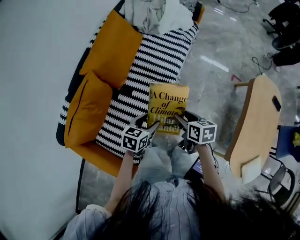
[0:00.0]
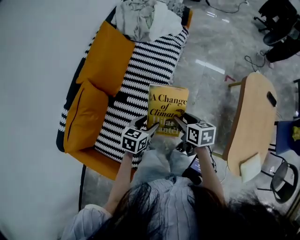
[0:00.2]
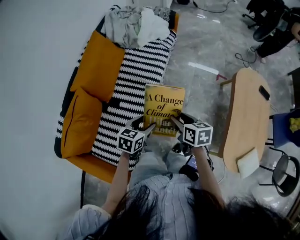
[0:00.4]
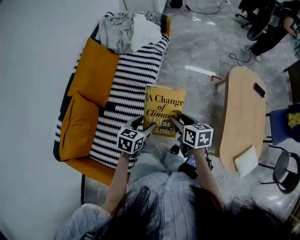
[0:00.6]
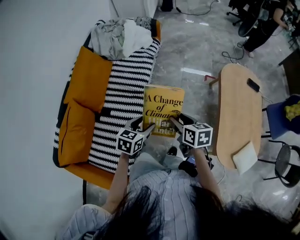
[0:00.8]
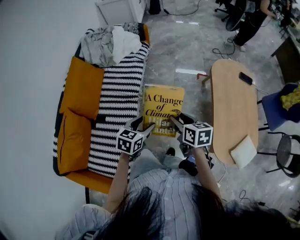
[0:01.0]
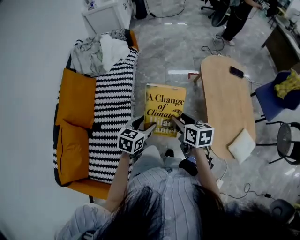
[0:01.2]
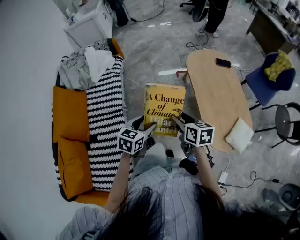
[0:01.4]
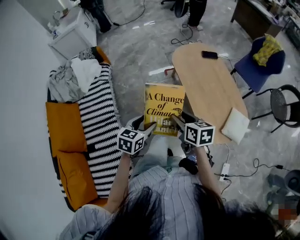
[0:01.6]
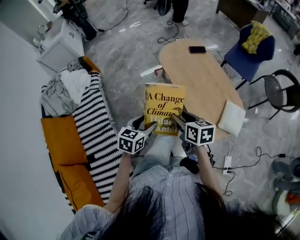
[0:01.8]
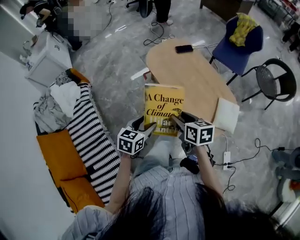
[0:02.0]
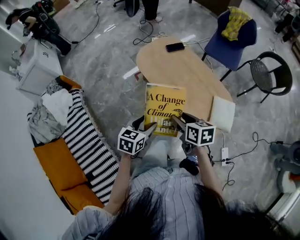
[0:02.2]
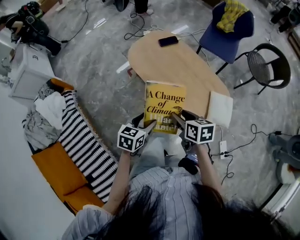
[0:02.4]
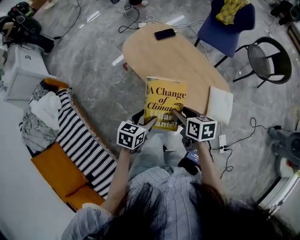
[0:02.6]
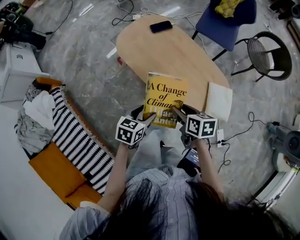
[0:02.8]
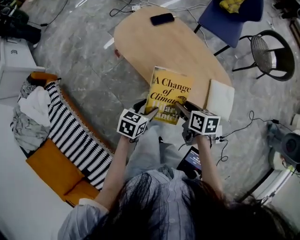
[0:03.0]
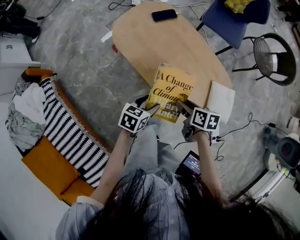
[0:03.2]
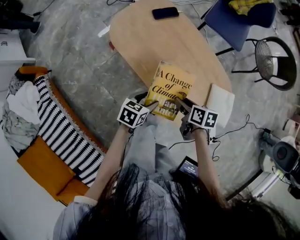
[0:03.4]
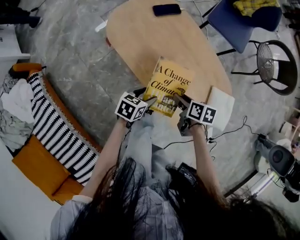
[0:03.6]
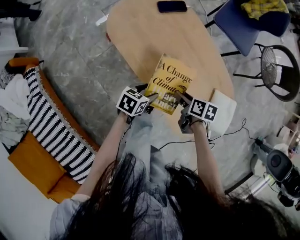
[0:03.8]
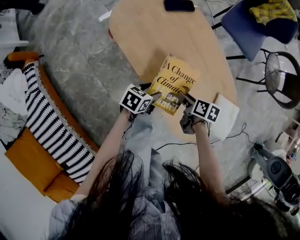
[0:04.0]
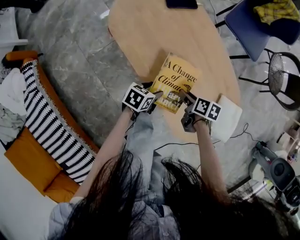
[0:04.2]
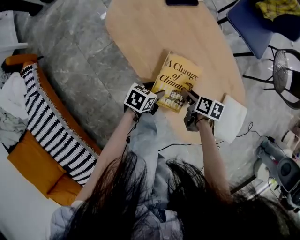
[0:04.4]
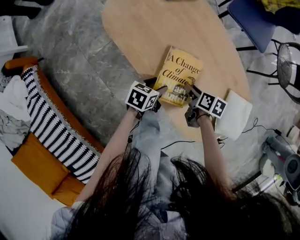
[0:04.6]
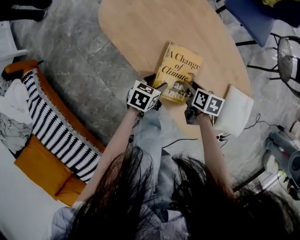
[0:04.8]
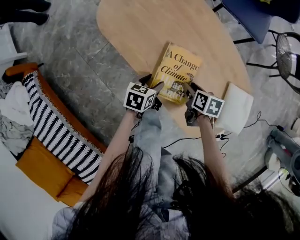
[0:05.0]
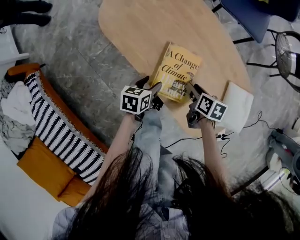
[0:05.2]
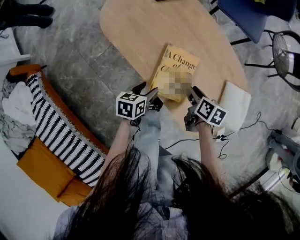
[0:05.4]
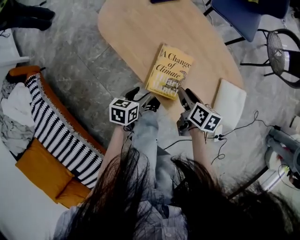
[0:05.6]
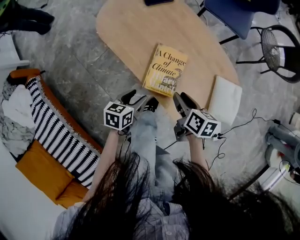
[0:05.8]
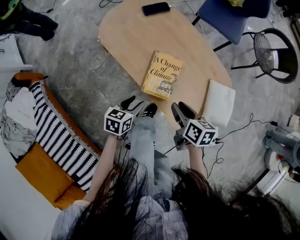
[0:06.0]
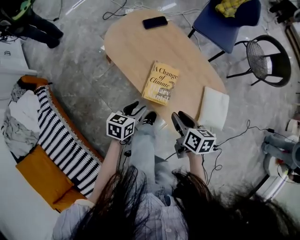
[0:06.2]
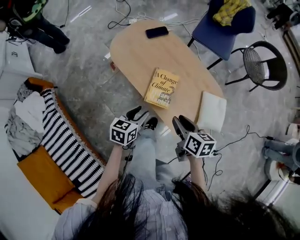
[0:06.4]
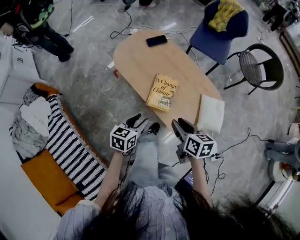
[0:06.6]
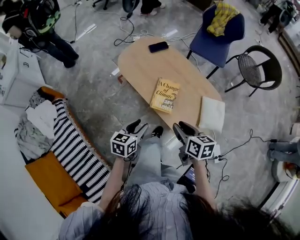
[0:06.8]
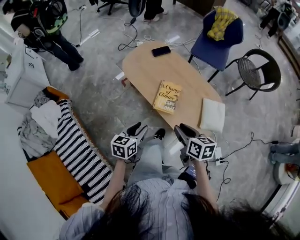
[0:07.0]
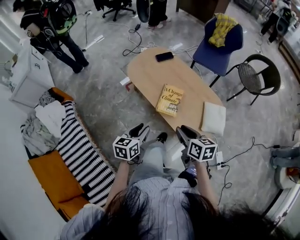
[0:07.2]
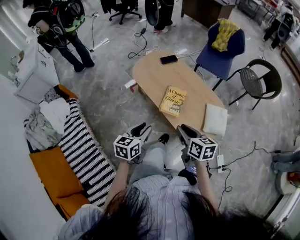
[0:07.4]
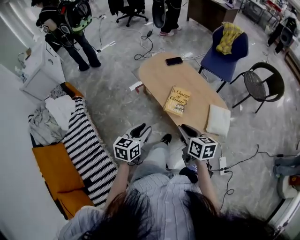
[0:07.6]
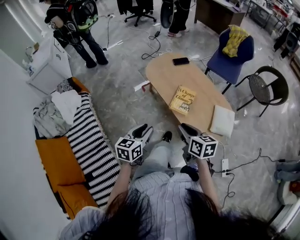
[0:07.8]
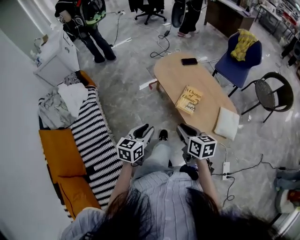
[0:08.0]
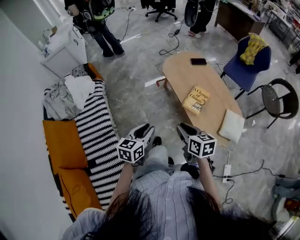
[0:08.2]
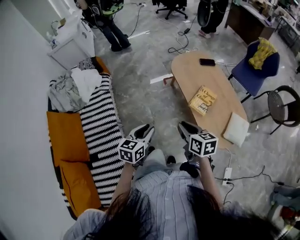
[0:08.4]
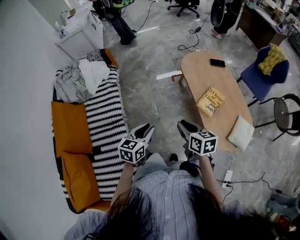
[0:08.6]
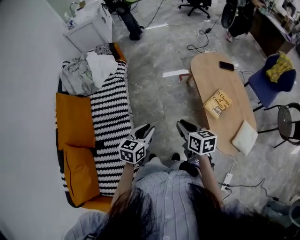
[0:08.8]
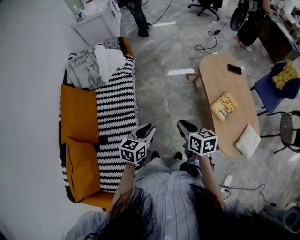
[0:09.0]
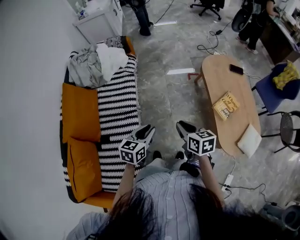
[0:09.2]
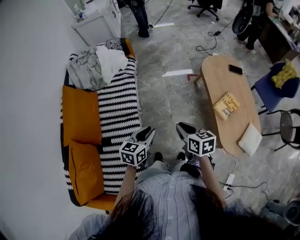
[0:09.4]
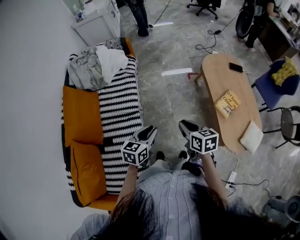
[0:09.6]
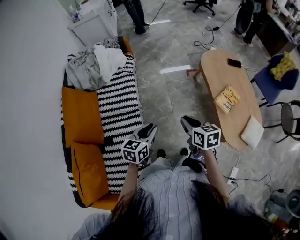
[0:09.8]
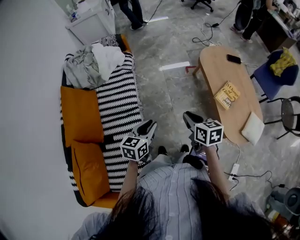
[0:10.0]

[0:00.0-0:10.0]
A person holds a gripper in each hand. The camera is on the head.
0.0 to 1.4 s: The left gripper shifts by roughly 35 cm, and swivels some 30 degrees; the right gripper moves roughly 35 cm, and swivels roughly 40 degrees.
1.4 to 2.8 s: The left gripper changes place by about 35 cm, and rotates some 40 degrees. Meanwhile the right gripper ends up roughly 30 cm from where it was, and turns by some 40 degrees.
2.8 to 4.2 s: Both grippers travel together downward and forward, approximately 30 cm. The right gripper changes its angle by roughly 20 degrees.
4.2 to 5.8 s: The right gripper travels upward and backward by some 10 cm. The left gripper travels backward and upward by some 10 cm.
5.8 to 7.2 s: Both grippers travel together upward and backward, about 30 cm. The right gripper swivels roughly 20 degrees; the left gripper changes its angle by some 20 degrees, and closes up.
7.2 to 8.6 s: The left gripper ends up roughly 25 cm from where it was, and swivels about 20 degrees, while the right gripper moves some 20 cm, and changes its angle by some 30 degrees.
8.6 to 10.0 s: Both grippers travel together to the left, roughly 15 cm.

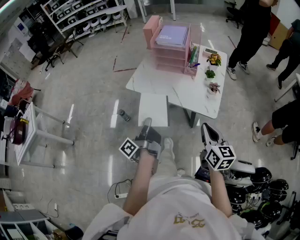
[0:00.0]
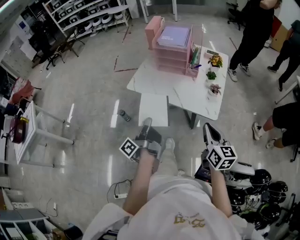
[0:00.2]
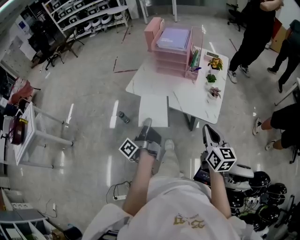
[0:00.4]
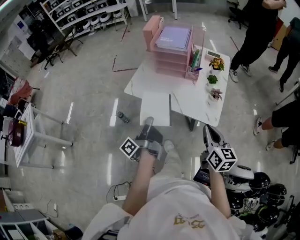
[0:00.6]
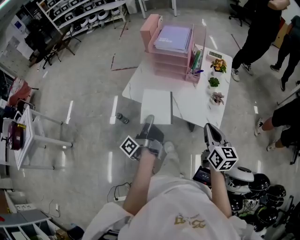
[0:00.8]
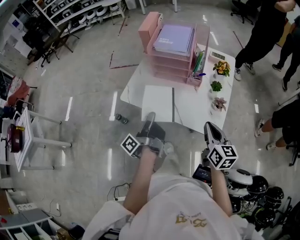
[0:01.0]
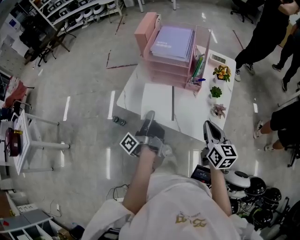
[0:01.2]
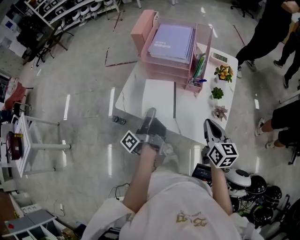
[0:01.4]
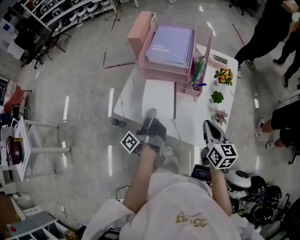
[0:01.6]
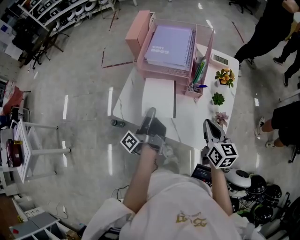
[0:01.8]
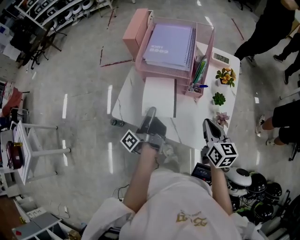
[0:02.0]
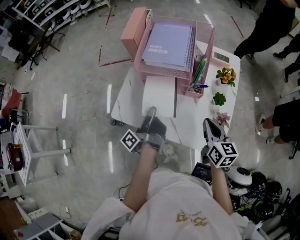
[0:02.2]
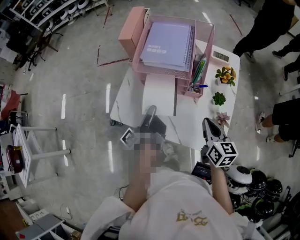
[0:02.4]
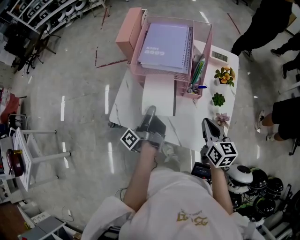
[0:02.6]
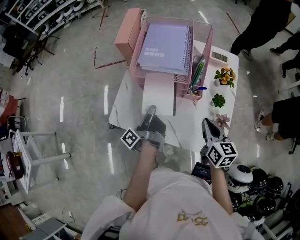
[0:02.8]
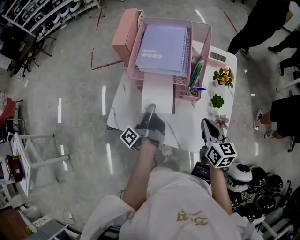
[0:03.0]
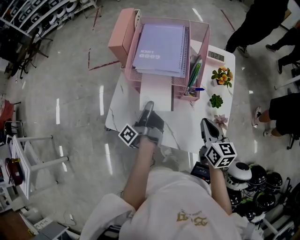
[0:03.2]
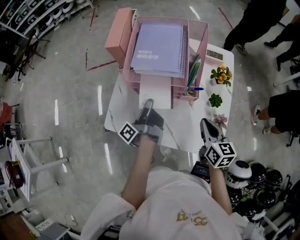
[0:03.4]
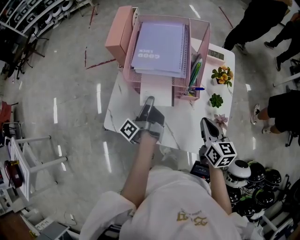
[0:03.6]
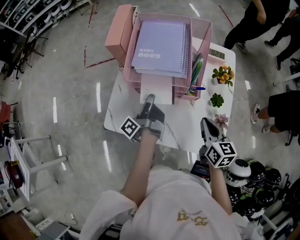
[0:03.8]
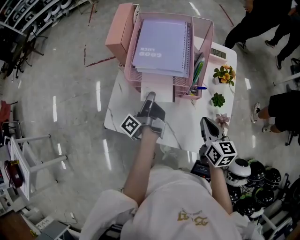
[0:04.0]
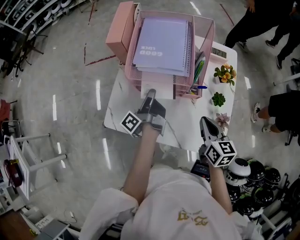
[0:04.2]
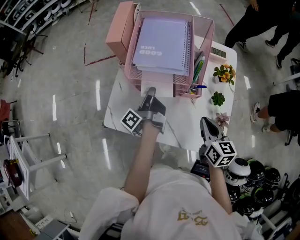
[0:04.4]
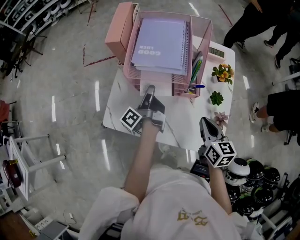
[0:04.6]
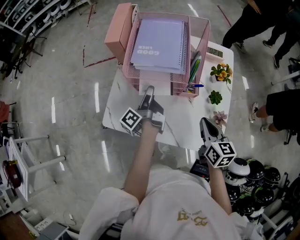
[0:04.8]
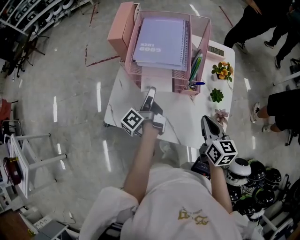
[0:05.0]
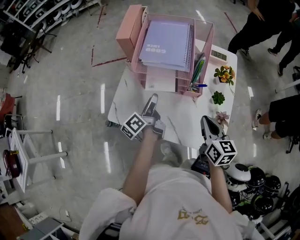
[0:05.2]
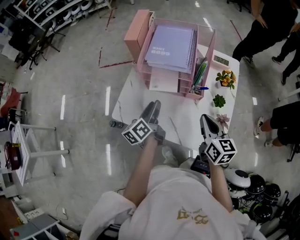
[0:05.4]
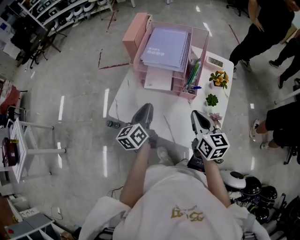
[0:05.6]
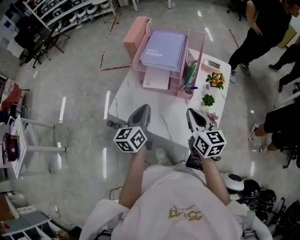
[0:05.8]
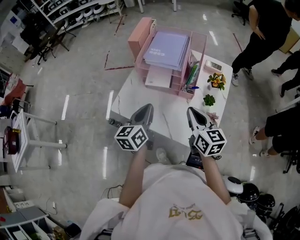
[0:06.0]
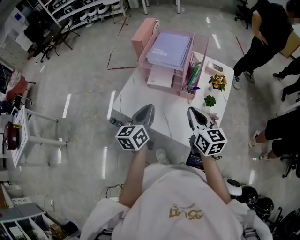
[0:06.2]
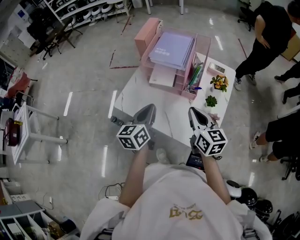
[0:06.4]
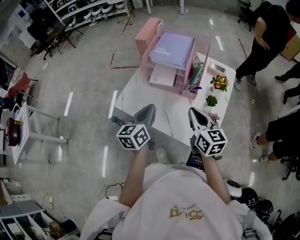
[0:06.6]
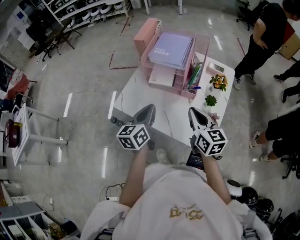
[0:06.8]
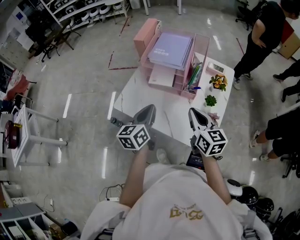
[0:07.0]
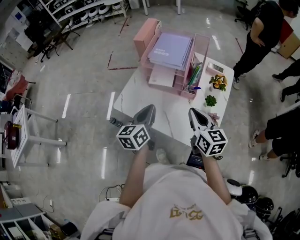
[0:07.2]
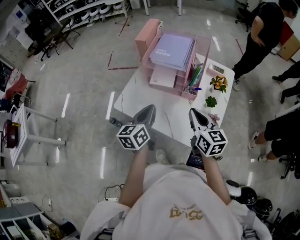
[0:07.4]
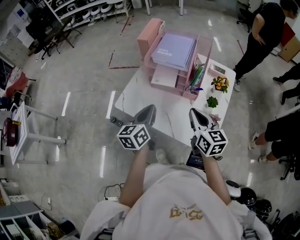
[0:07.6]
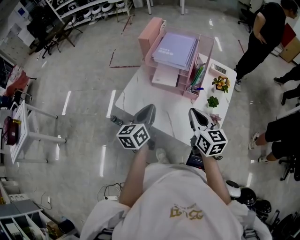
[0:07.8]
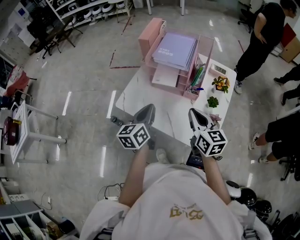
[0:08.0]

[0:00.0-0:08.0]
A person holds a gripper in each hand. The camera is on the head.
0.0 to 1.6 s: The right gripper ends up about 30 cm from where it was.
1.6 to 3.2 s: The right gripper changes place by some 10 cm.
4.8 to 6.4 s: The right gripper heads upward, covering approximately 10 cm, and rotates about 20 degrees.

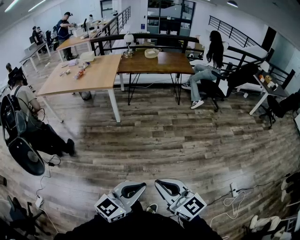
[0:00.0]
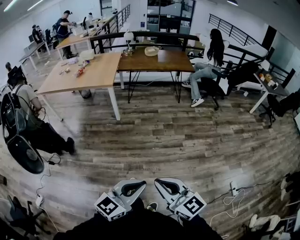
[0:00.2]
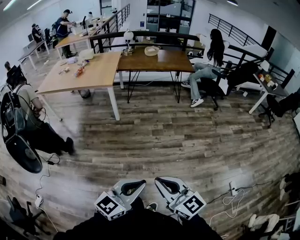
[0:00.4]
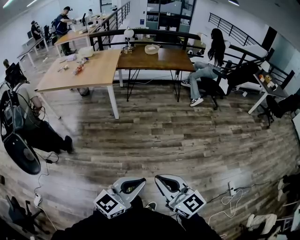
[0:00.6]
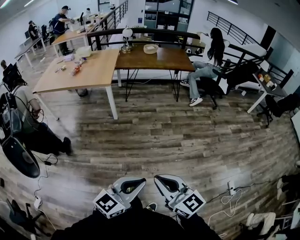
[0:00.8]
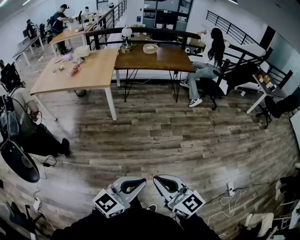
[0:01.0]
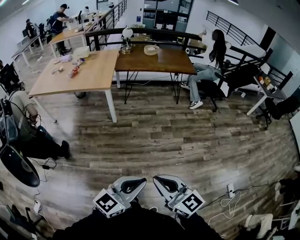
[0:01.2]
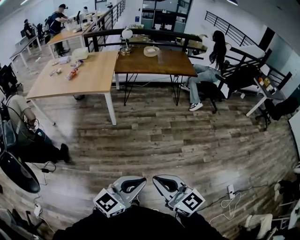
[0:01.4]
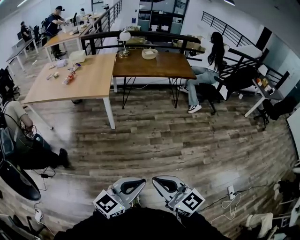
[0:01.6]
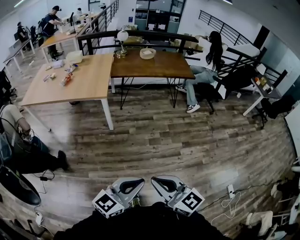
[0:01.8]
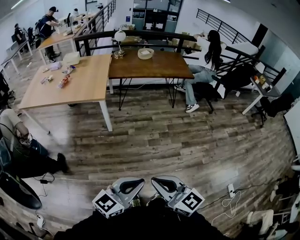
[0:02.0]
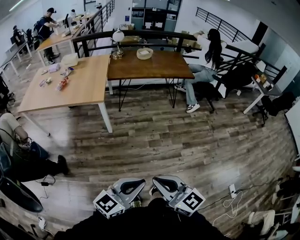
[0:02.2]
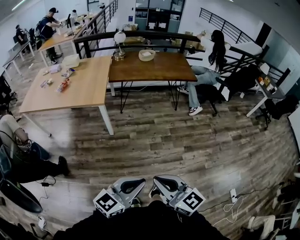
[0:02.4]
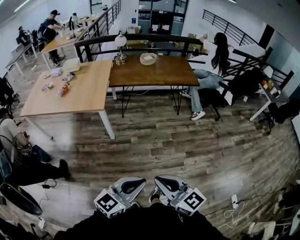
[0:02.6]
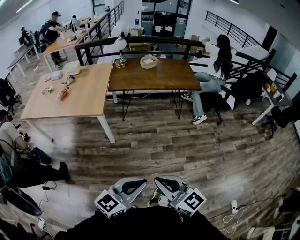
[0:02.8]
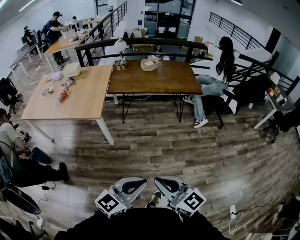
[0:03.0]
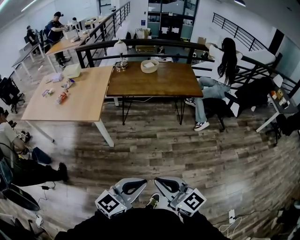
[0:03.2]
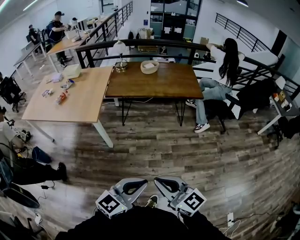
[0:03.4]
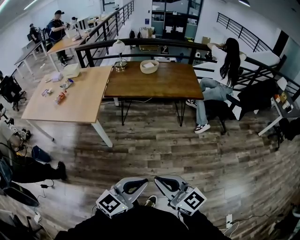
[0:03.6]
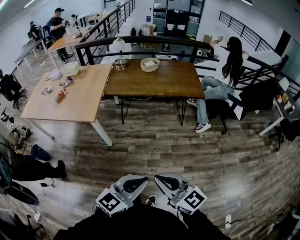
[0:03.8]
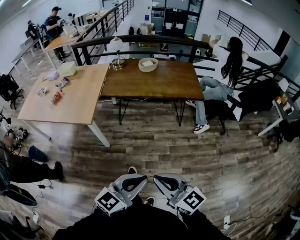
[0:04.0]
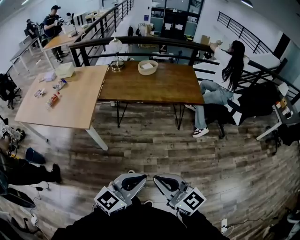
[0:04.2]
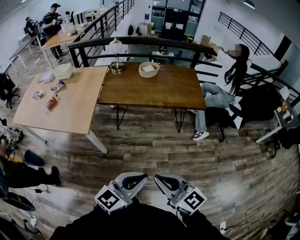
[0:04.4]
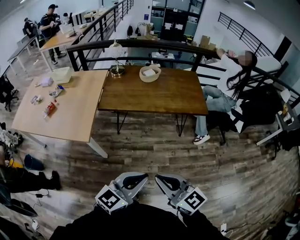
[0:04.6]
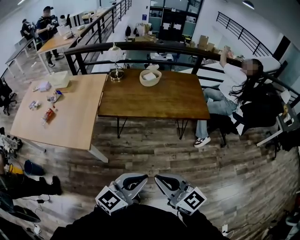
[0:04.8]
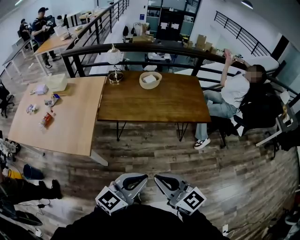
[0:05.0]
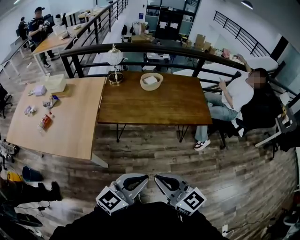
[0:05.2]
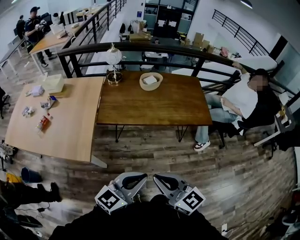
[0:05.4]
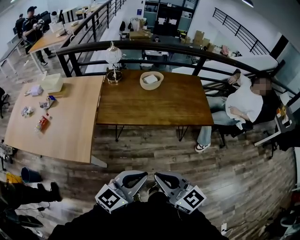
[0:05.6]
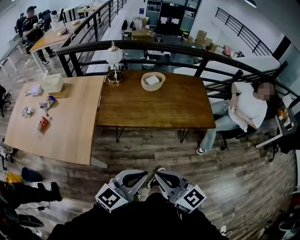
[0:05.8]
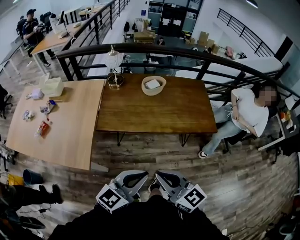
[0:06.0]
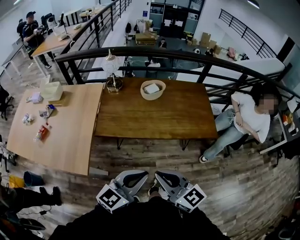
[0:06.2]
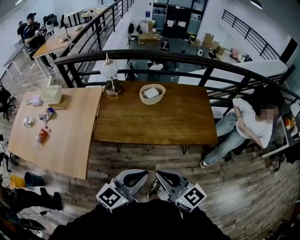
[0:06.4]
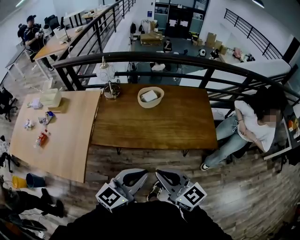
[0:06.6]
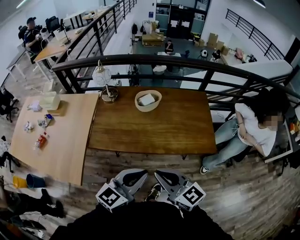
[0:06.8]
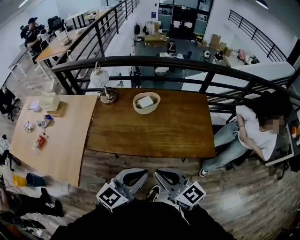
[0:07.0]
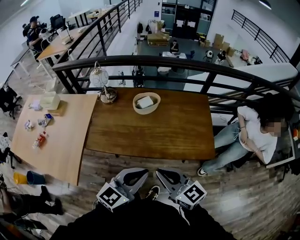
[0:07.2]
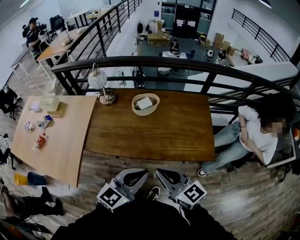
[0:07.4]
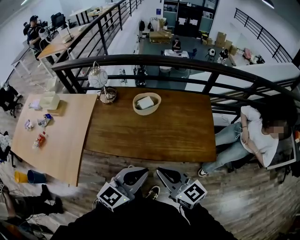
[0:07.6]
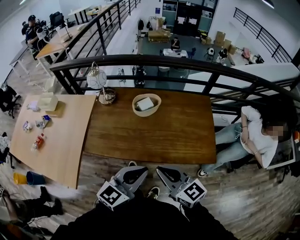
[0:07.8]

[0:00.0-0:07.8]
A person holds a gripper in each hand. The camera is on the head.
0.0 to 1.6 s: Both grippers move forward and to the left, some 25 cm.
1.6 to 3.2 s: The two grippers go approximately 30 cm forward and to the right.
3.2 to 4.6 s: The grippers both shift forward by approximately 25 cm.
4.6 to 6.2 s: Both grippers travel together forward, approximately 25 cm.
6.2 to 7.8 s: Both grippers travel together forward and to the right, roughly 25 cm.
